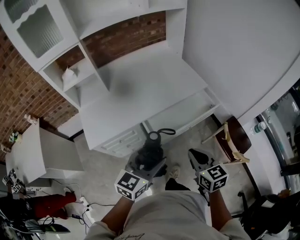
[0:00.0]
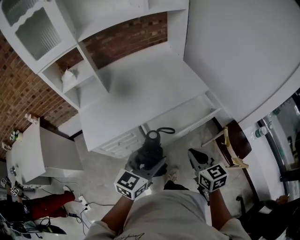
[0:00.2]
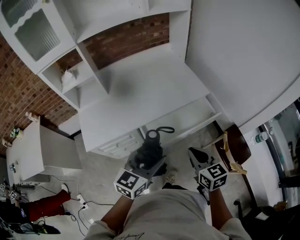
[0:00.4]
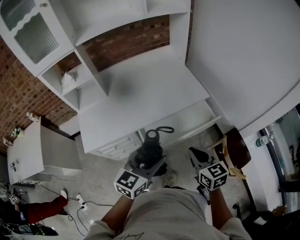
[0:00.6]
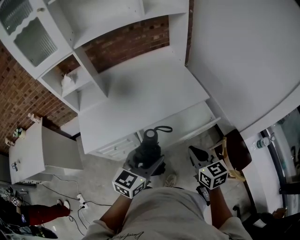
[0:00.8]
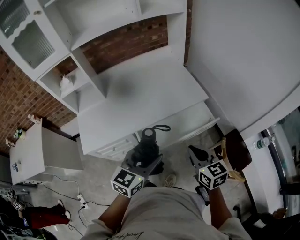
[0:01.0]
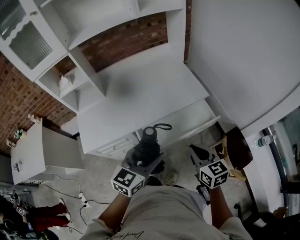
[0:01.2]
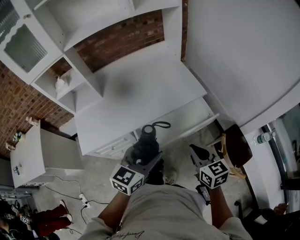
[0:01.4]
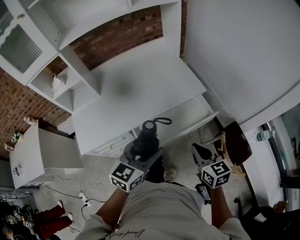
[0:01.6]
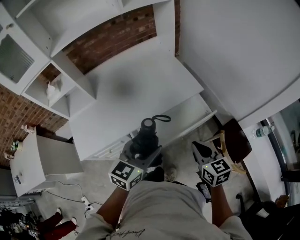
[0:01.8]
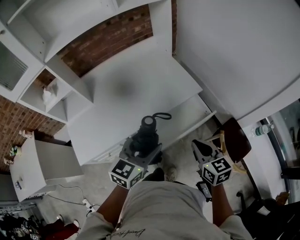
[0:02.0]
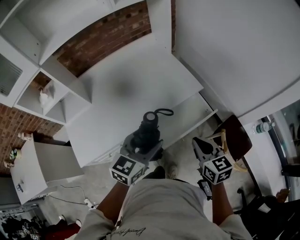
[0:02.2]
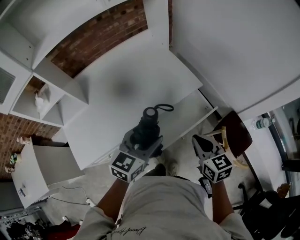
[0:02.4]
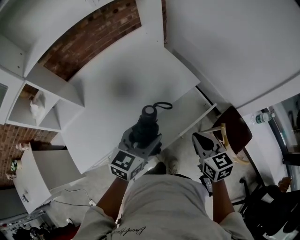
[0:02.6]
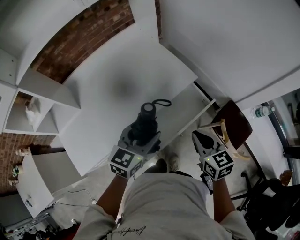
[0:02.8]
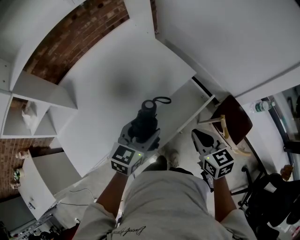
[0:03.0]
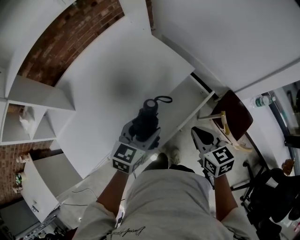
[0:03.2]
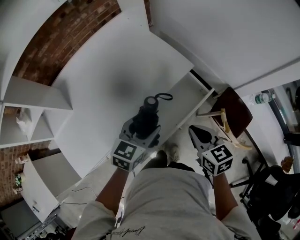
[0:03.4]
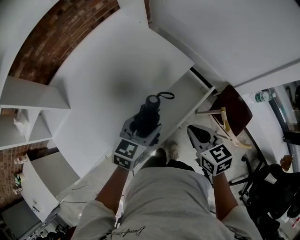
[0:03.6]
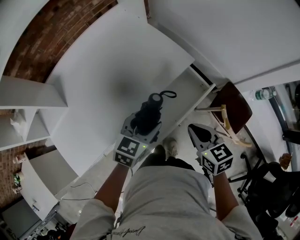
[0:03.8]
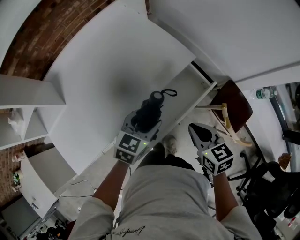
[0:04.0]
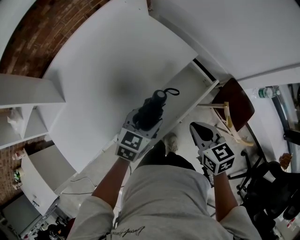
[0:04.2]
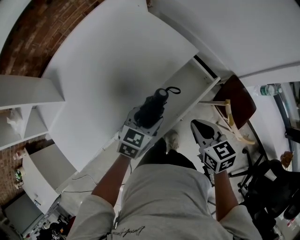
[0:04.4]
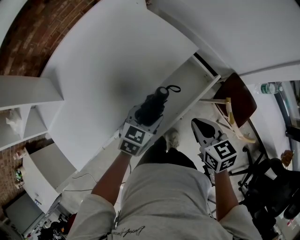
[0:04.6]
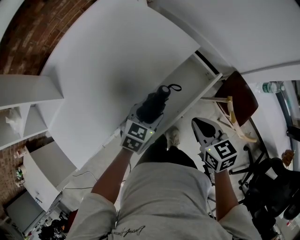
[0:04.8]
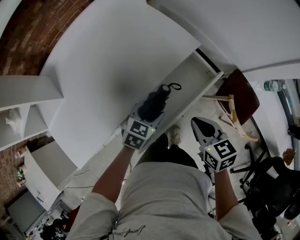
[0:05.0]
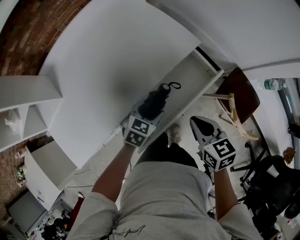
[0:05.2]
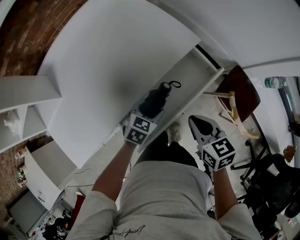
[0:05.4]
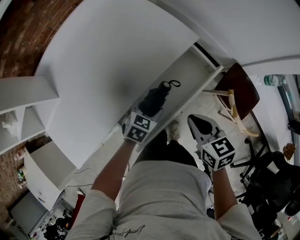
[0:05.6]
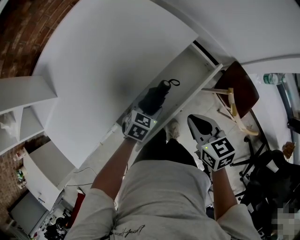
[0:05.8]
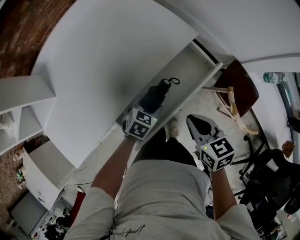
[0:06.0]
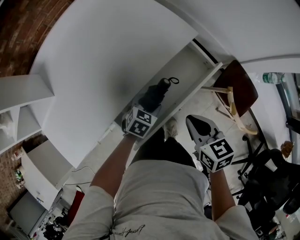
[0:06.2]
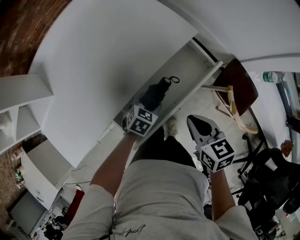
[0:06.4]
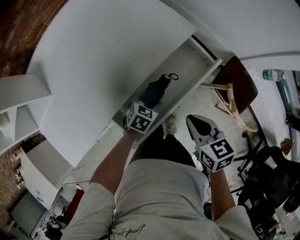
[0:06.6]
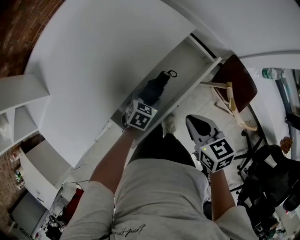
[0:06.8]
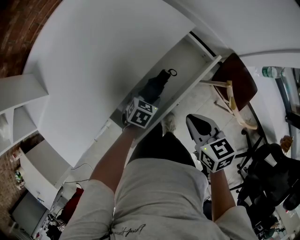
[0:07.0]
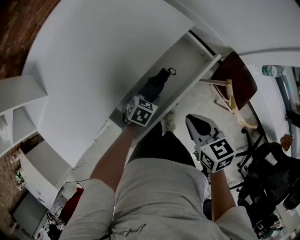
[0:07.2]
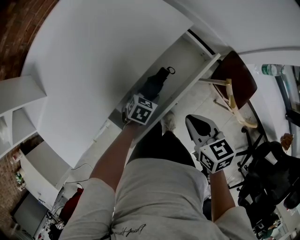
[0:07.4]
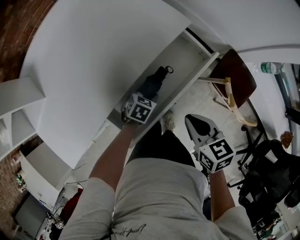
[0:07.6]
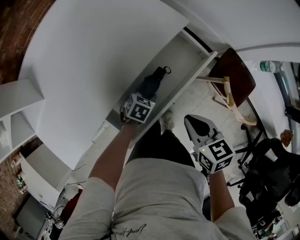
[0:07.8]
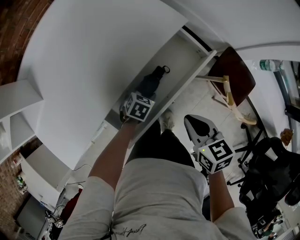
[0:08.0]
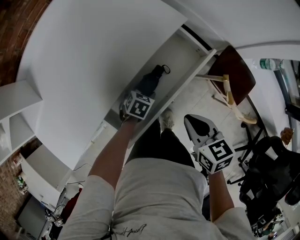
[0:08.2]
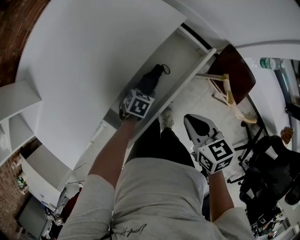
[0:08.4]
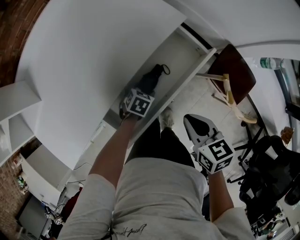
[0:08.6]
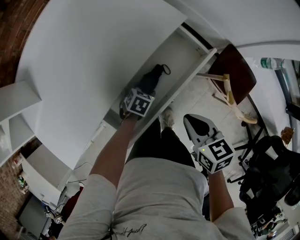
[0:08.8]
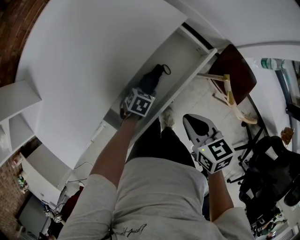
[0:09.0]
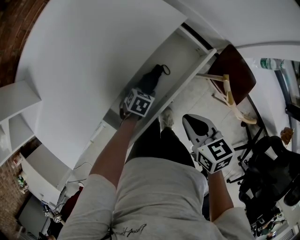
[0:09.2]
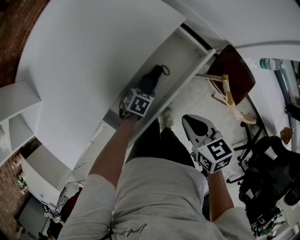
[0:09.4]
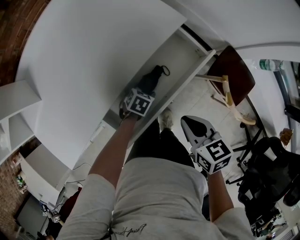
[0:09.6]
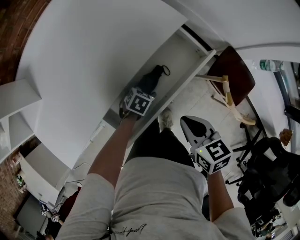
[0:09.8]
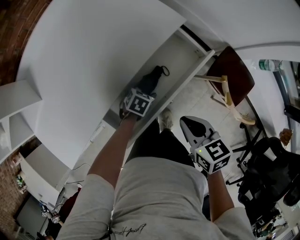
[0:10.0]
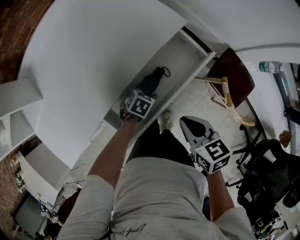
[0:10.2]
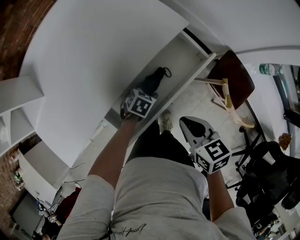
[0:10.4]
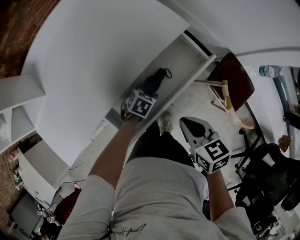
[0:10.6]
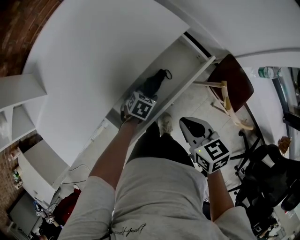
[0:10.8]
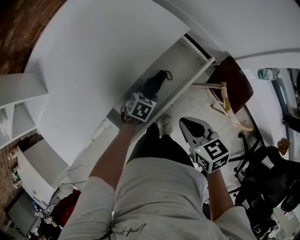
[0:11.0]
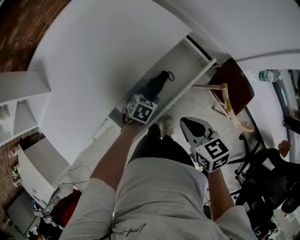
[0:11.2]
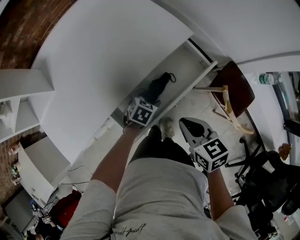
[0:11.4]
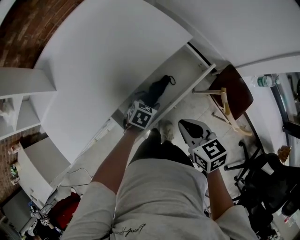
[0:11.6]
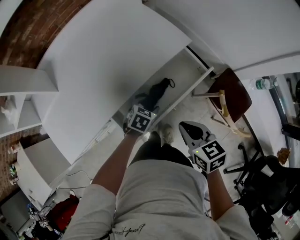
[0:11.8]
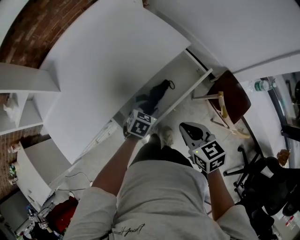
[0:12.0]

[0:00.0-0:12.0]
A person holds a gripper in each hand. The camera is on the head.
0:00.0 to 0:01.6: The grippers both shift forward and to the right by some 15 cm.
0:01.6 to 0:03.0: The right gripper is displaced forward by approximately 10 cm, while the left gripper shifts some 15 cm forward and downward.
0:03.0 to 0:04.4: The left gripper moves downward, about 10 cm. The right gripper heads downward, covering about 5 cm.
0:04.4 to 0:06.0: The left gripper heads downward, covering roughly 15 cm.
0:06.0 to 0:07.6: The left gripper is displaced downward by about 5 cm.
0:07.6 to 0:10.4: The grippers make only small movements.
0:10.4 to 0:12.0: The left gripper moves upward, some 10 cm, and closes, while the right gripper shifts by roughly 5 cm.

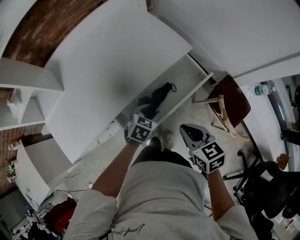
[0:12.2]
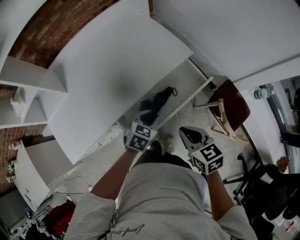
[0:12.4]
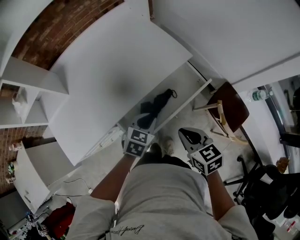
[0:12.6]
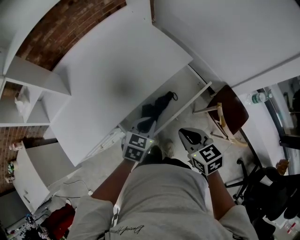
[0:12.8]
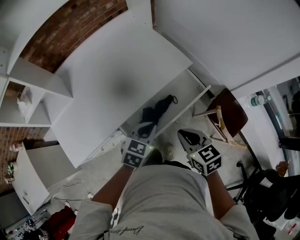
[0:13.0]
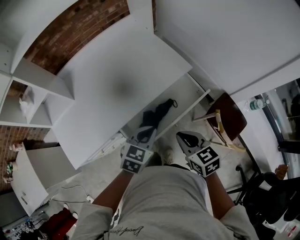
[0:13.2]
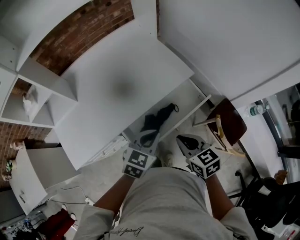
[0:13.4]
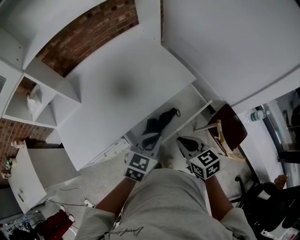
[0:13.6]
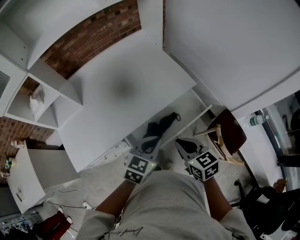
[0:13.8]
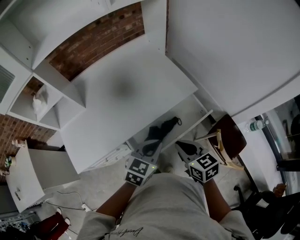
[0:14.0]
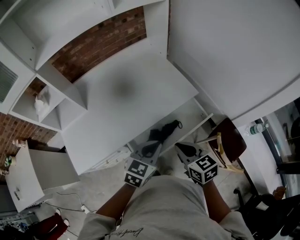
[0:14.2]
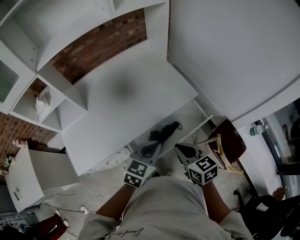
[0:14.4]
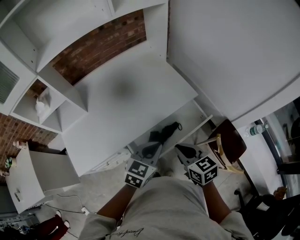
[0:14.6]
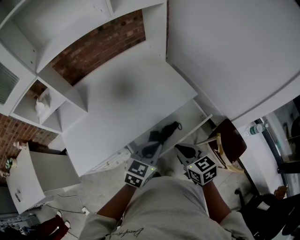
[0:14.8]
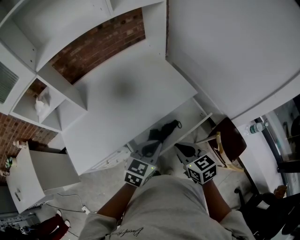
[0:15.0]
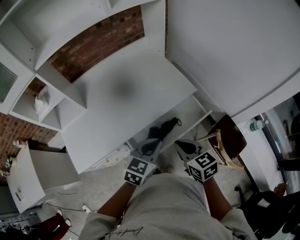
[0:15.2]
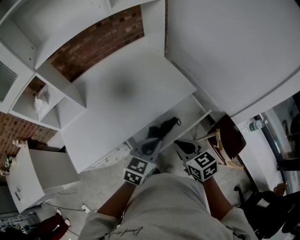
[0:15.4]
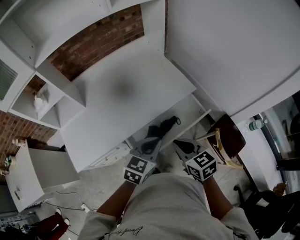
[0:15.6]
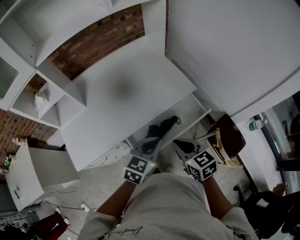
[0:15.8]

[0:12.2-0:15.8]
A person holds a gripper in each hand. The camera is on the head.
0:12.2 to 0:14.0: The right gripper shifts some 10 cm upward and to the left; the left gripper moves upward, approximately 20 cm, turns by approximately 20 degrees, and closes.
0:14.0 to 0:15.8: The grippers stay close to where they were, moving slightly.

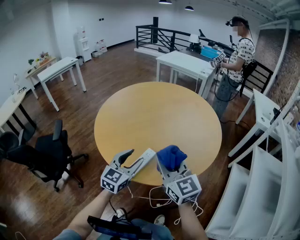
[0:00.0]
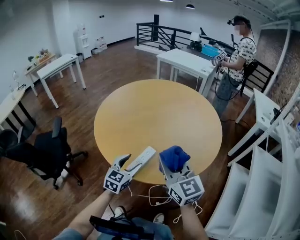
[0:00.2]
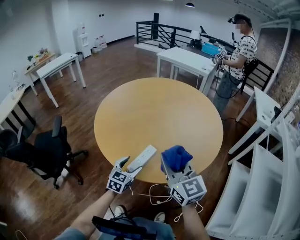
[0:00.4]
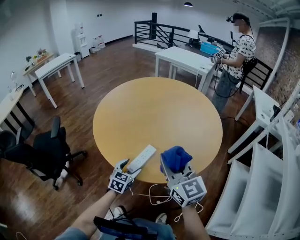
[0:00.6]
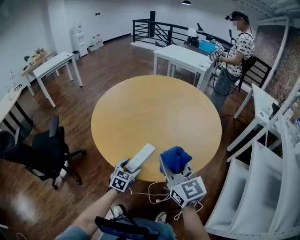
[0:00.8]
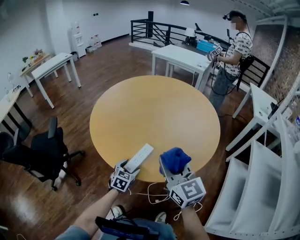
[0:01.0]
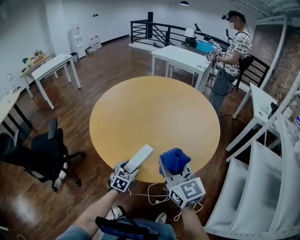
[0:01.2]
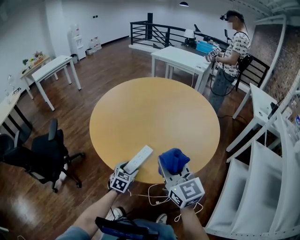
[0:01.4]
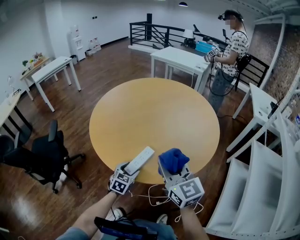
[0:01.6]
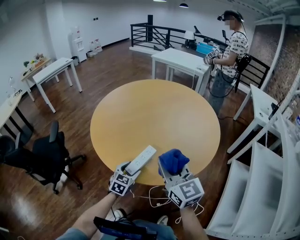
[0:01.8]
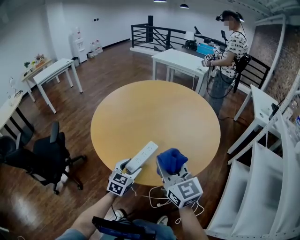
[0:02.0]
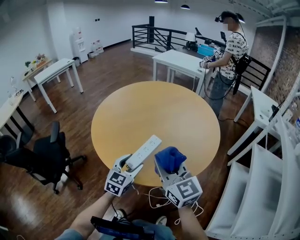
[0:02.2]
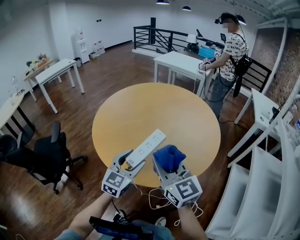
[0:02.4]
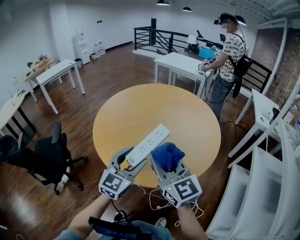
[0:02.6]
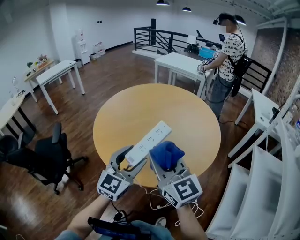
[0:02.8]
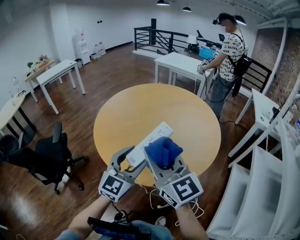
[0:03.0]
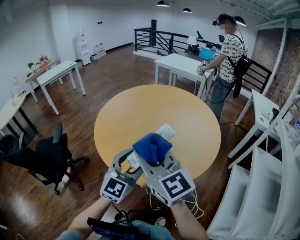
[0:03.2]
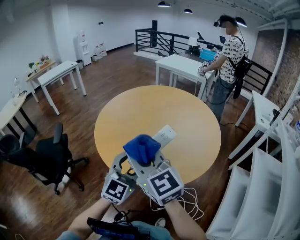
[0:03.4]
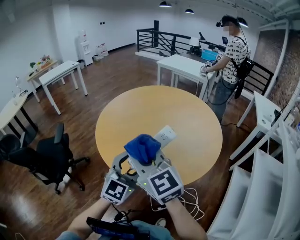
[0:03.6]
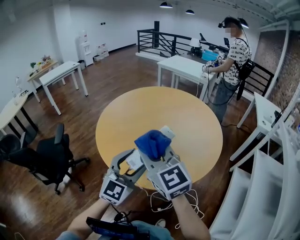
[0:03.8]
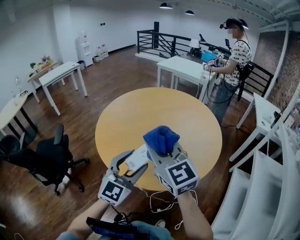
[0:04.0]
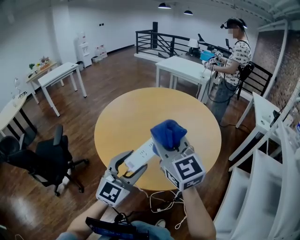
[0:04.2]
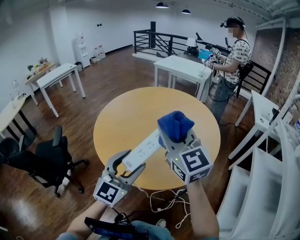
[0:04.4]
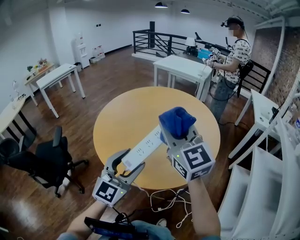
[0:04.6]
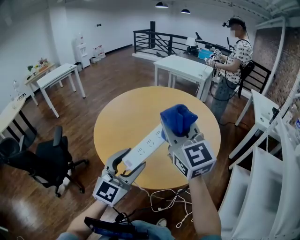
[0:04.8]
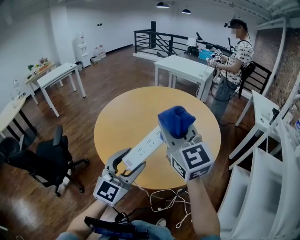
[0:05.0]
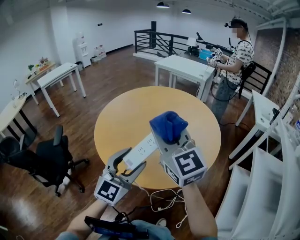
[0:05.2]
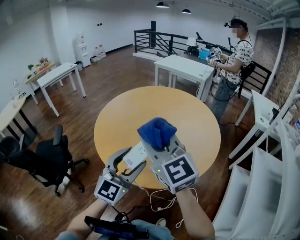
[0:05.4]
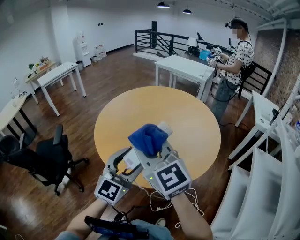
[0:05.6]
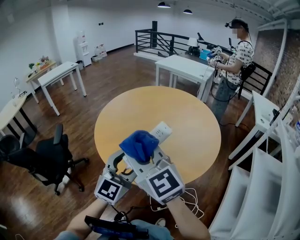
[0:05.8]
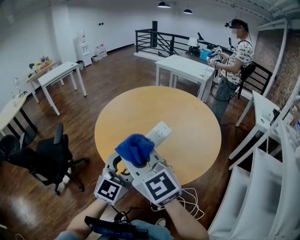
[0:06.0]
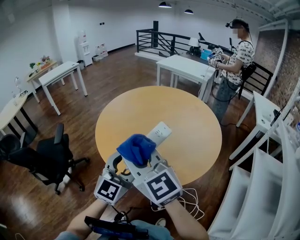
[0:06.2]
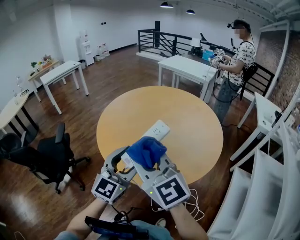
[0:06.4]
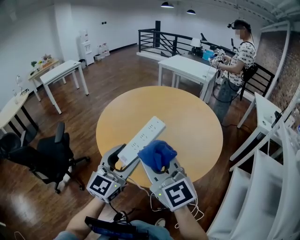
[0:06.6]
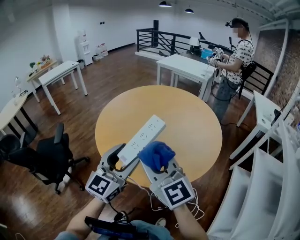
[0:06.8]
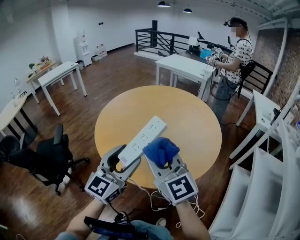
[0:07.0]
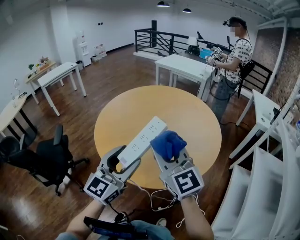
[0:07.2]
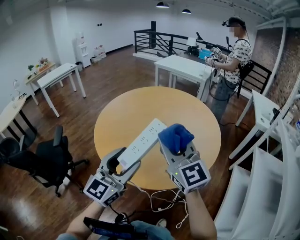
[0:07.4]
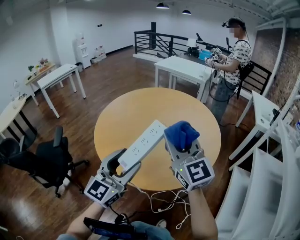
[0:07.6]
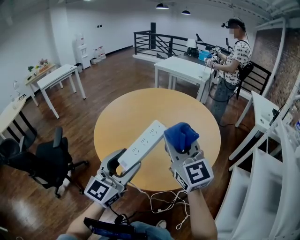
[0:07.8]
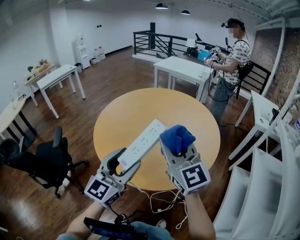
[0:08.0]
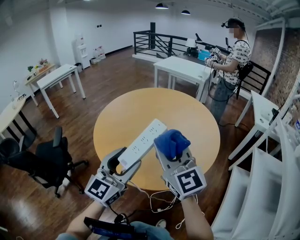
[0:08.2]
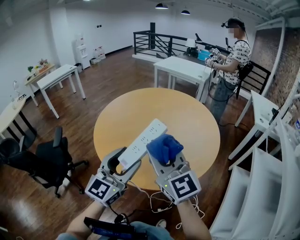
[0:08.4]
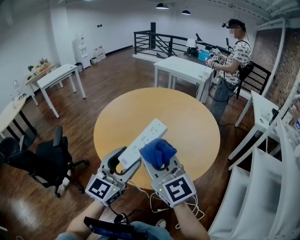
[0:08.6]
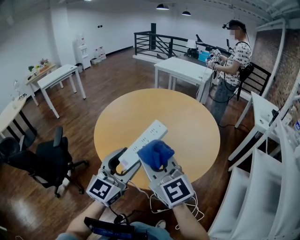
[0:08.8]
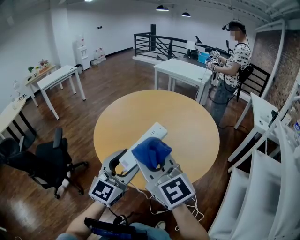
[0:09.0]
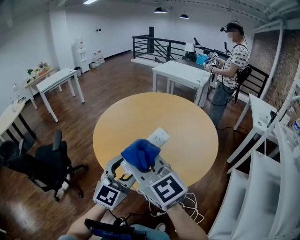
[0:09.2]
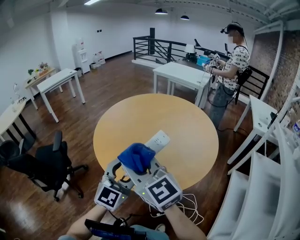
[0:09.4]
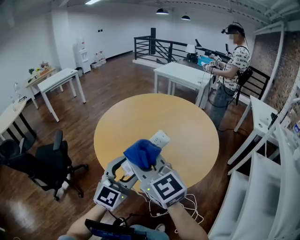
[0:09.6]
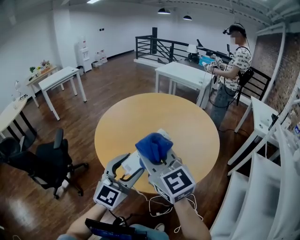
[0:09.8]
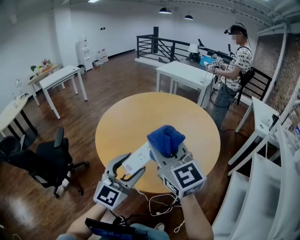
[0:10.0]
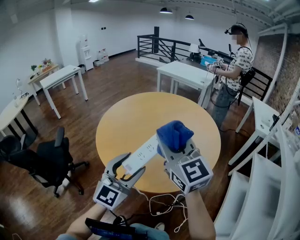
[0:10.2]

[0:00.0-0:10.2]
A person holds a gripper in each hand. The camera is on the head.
0:00.0 to 0:01.4: The left gripper shifts approximately 20 cm downward, and swivels roughly 30 degrees.
0:01.4 to 0:03.0: The left gripper travels upward by roughly 30 cm, and points its fingers some 40 degrees further upward; the right gripper moves upward and to the left, some 10 cm.
0:03.0 to 0:04.4: The right gripper goes roughly 10 cm forward.
0:04.4 to 0:05.8: The right gripper travels to the left and backward by roughly 15 cm.
0:05.8 to 0:07.2: The right gripper goes some 10 cm to the right.
0:07.2 to 0:08.8: The right gripper moves about 5 cm.
0:08.8 to 0:10.2: The right gripper is displaced to the right and upward by some 5 cm.
